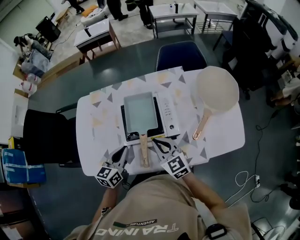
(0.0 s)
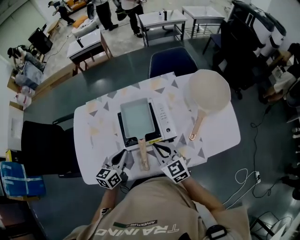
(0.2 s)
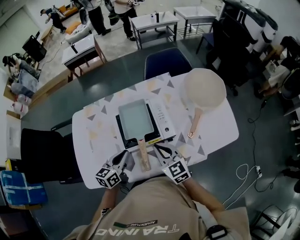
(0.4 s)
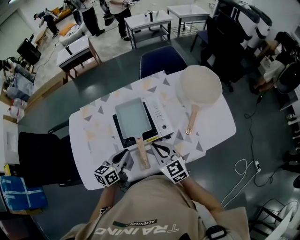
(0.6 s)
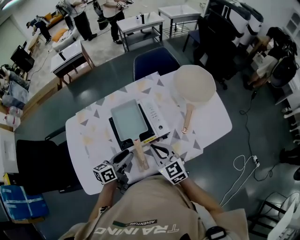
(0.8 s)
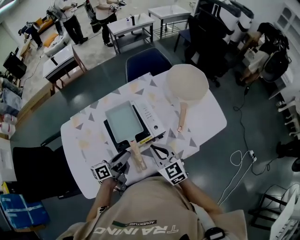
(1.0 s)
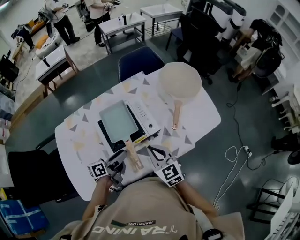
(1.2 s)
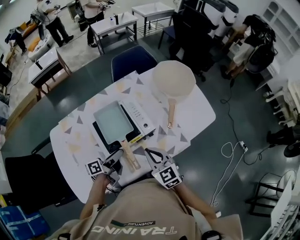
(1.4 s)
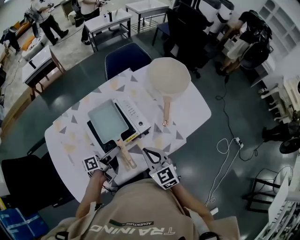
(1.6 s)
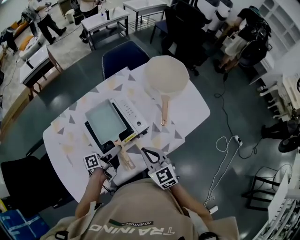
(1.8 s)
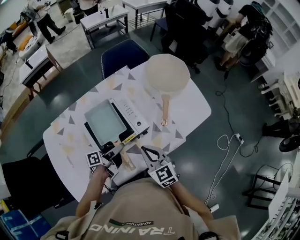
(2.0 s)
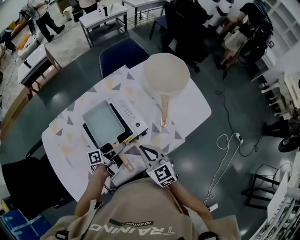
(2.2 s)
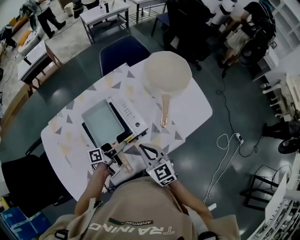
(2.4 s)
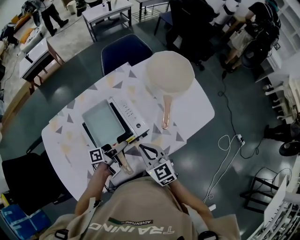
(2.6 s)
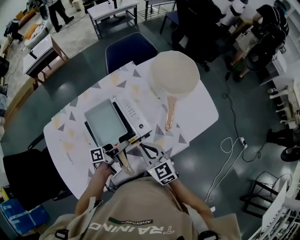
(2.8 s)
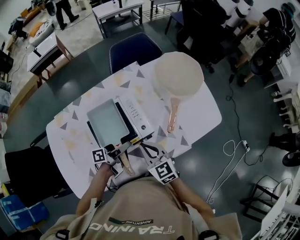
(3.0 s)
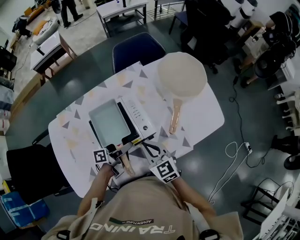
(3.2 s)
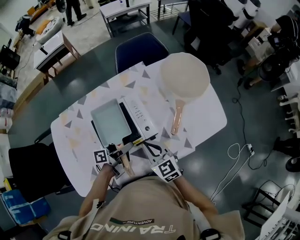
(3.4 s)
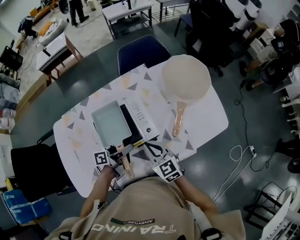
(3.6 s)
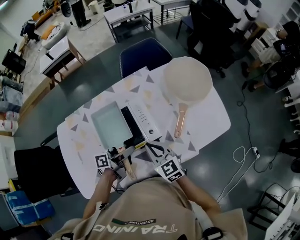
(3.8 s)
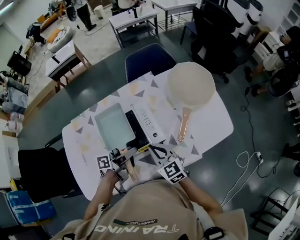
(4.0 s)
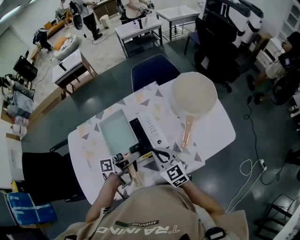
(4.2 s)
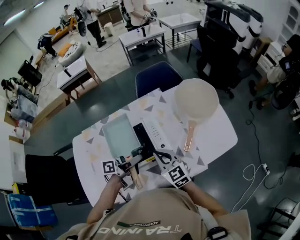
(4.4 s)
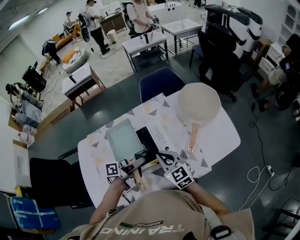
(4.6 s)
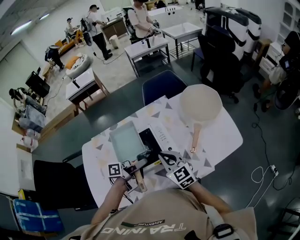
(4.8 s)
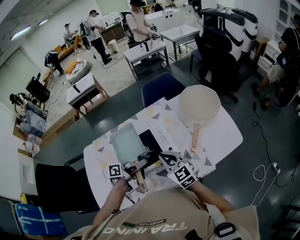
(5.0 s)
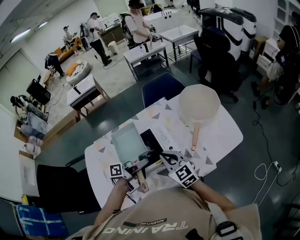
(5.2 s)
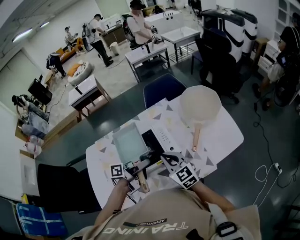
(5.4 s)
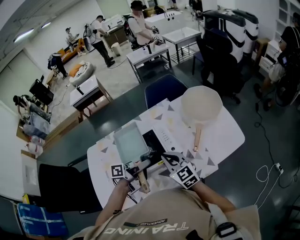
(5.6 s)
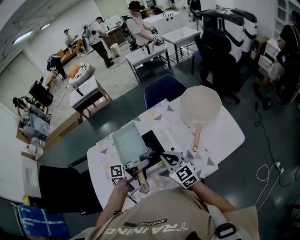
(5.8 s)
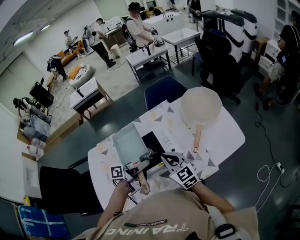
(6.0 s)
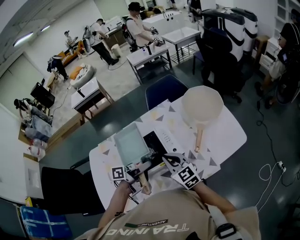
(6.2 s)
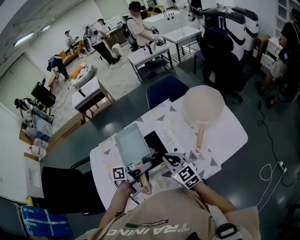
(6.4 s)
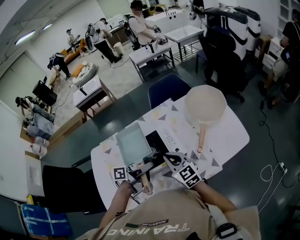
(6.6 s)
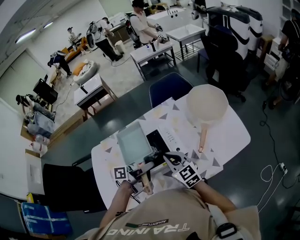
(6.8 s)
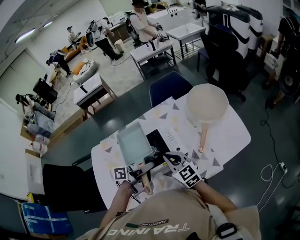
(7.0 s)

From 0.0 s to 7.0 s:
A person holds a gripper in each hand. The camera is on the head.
From 0.0 s to 1.4 s: The left gripper shifts by about 5 cm, swivels about 60 degrees, and opens, while the right gripper moves approximately 5 cm, and turns by some 30 degrees.
From 1.4 s to 2.8 s: The right gripper goes approximately 5 cm forward. The left gripper heads forward and to the right, covering approximately 10 cm, and closes up.
From 2.8 s to 4.2 s: The left gripper goes about 5 cm upward.
From 4.2 s to 5.6 s: The right gripper changes place by some 5 cm. The left gripper shifts by roughly 5 cm.
From 5.6 s to 7.0 s: The grippers stay close to where they were, moving slightly.

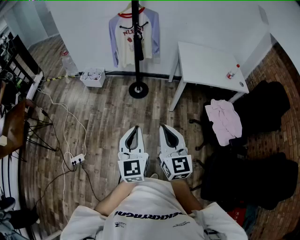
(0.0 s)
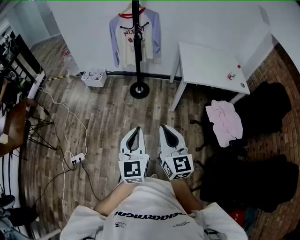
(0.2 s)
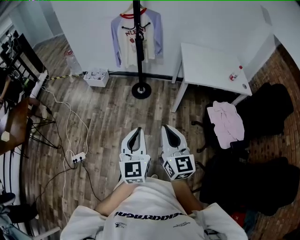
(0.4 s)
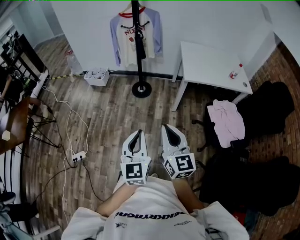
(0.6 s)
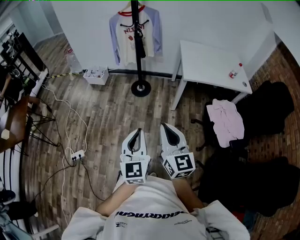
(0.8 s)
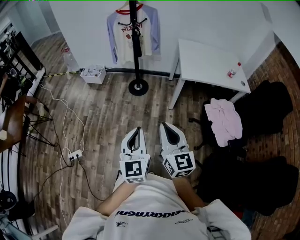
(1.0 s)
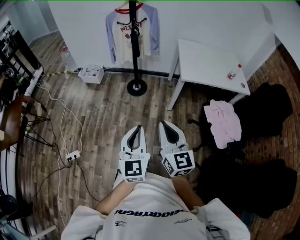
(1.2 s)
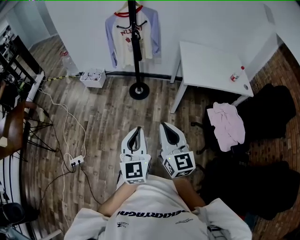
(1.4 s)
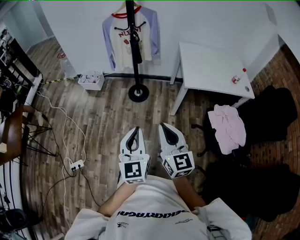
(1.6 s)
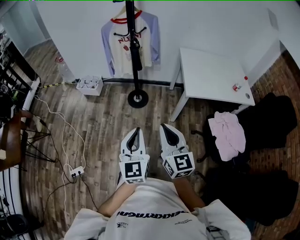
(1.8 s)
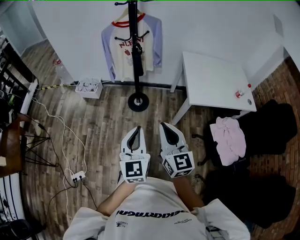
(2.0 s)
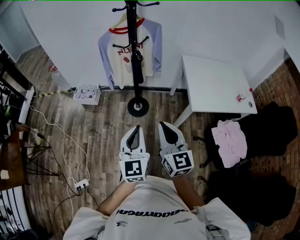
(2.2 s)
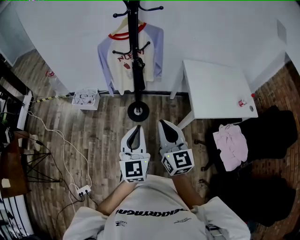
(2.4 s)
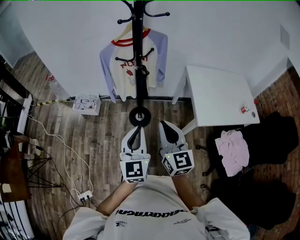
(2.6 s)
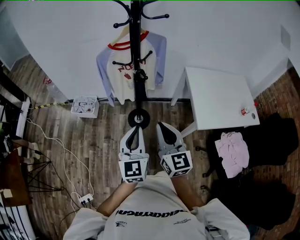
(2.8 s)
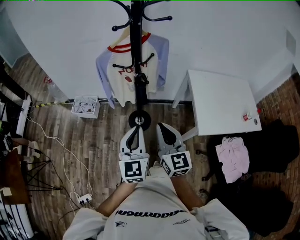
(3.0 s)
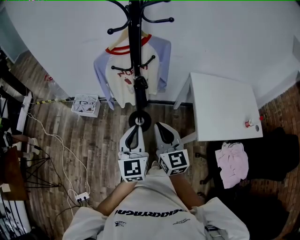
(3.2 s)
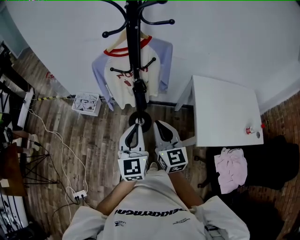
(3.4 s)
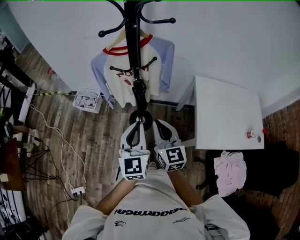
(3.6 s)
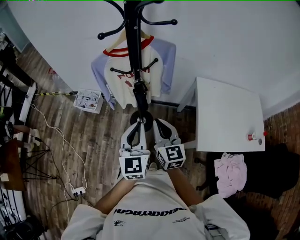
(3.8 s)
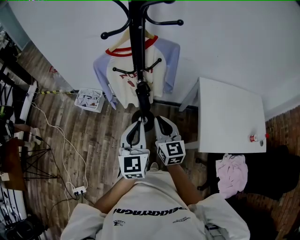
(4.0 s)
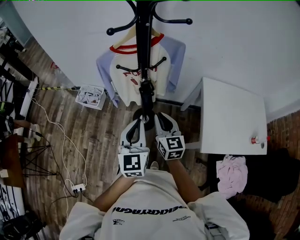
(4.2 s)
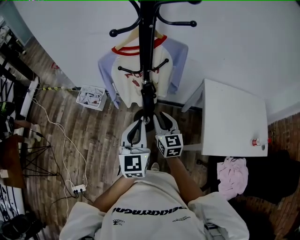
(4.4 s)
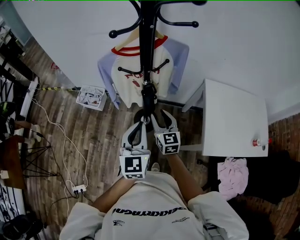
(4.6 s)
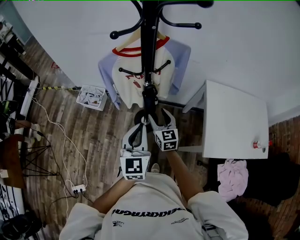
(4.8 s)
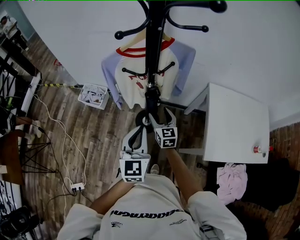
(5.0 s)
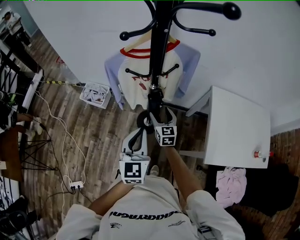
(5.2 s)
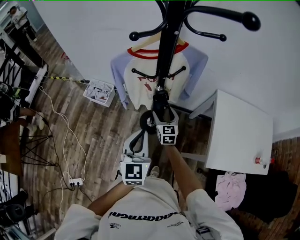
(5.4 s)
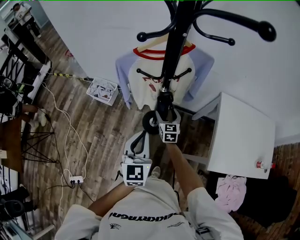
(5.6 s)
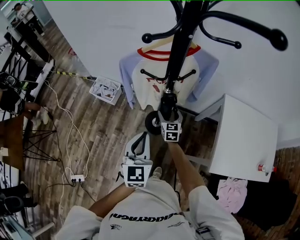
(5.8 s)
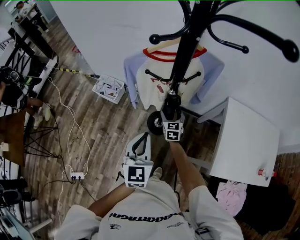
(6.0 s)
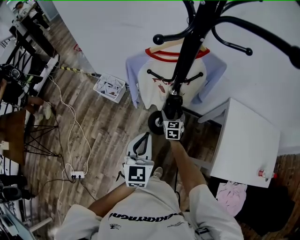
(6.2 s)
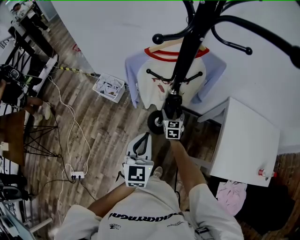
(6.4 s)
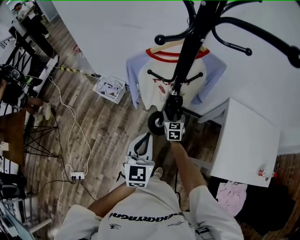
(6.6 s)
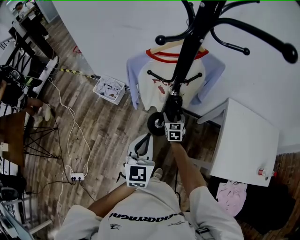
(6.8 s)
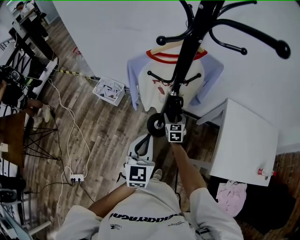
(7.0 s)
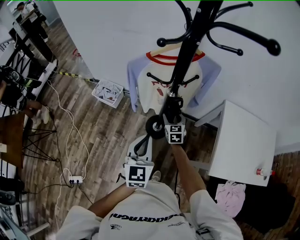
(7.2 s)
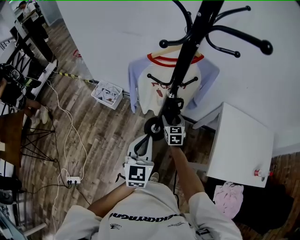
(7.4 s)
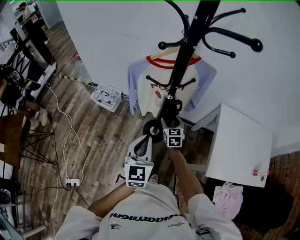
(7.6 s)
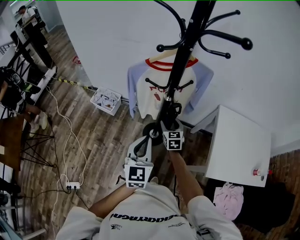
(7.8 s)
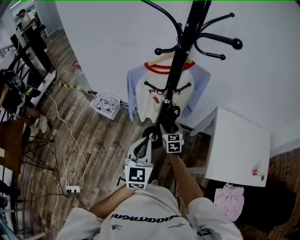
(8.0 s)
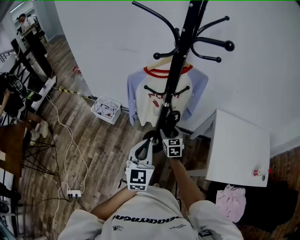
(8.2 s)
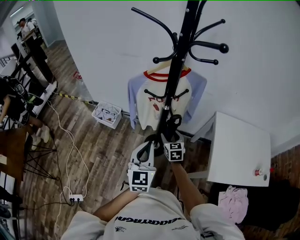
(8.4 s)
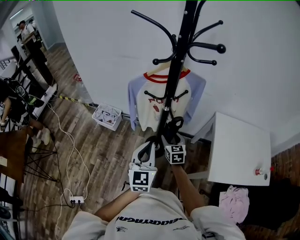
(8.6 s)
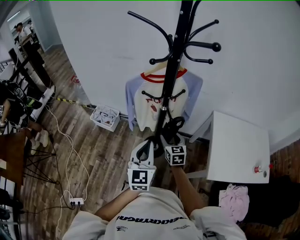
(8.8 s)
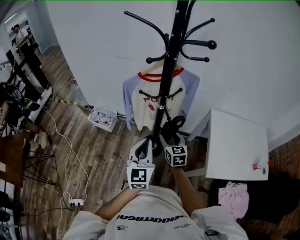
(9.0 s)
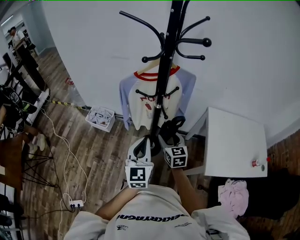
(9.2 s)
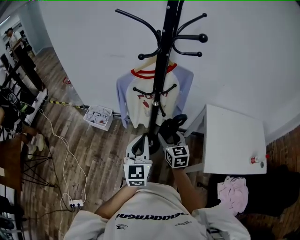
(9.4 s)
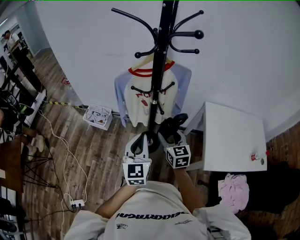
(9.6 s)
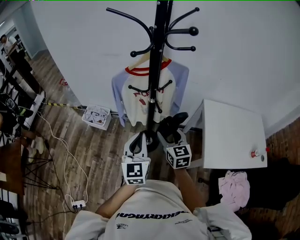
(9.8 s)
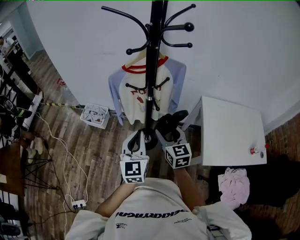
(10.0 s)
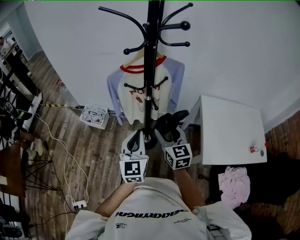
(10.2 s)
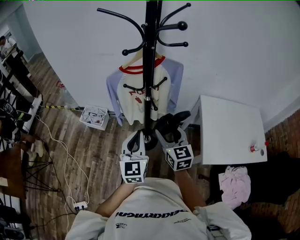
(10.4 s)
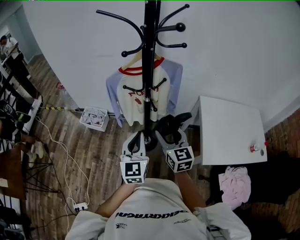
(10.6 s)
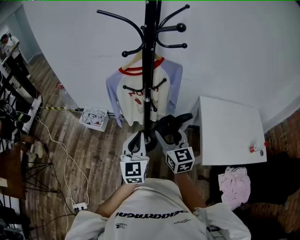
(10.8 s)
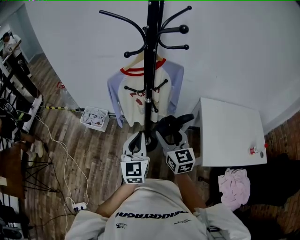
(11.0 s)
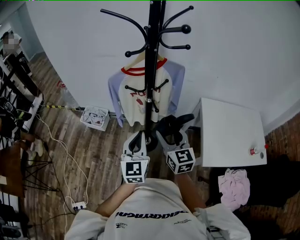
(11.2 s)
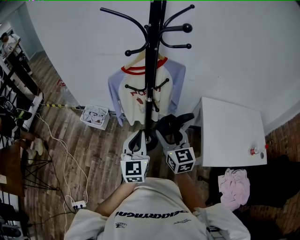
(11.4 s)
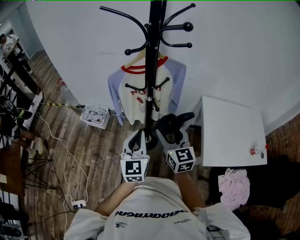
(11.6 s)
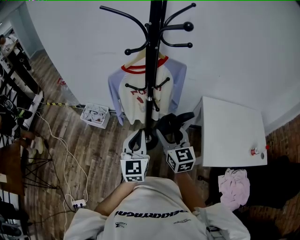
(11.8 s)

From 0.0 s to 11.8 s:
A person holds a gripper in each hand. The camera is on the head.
From 0.0 s to 1.4 s: Both grippers travel together forward and to the right, some 10 cm.
From 1.4 s to 3.0 s: Both grippers are carried forward, approximately 50 cm.
From 3.0 s to 4.4 s: The left gripper moves forward, some 15 cm, while the right gripper goes approximately 25 cm forward and downward.
From 4.4 s to 6.0 s: The left gripper moves to the left and downward, approximately 5 cm. The right gripper goes some 25 cm downward and forward, and opens.
From 6.0 s to 7.4 s: The right gripper goes some 5 cm upward.
From 7.4 s to 8.8 s: The left gripper moves upward, about 5 cm. The right gripper travels backward and upward by some 15 cm.
From 8.8 s to 10.4 s: The right gripper heads upward and backward, covering approximately 15 cm.
From 10.4 s to 11.8 s: The grippers move only a little.

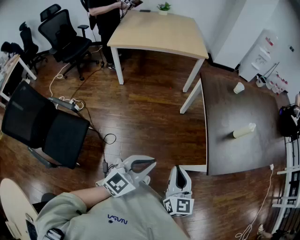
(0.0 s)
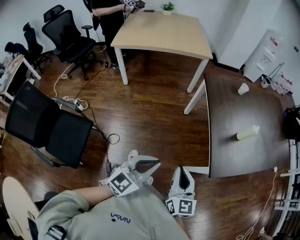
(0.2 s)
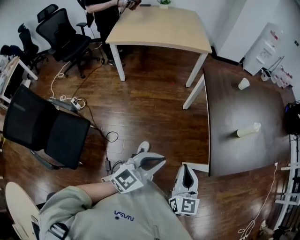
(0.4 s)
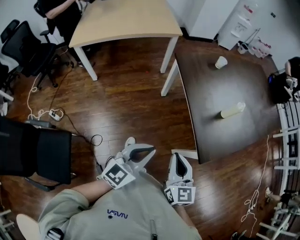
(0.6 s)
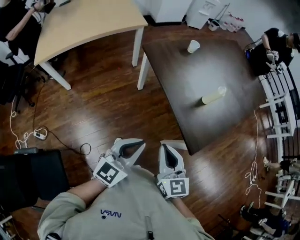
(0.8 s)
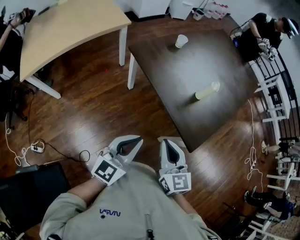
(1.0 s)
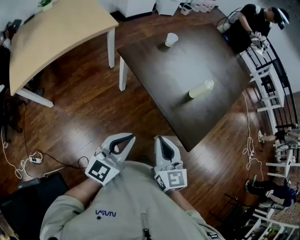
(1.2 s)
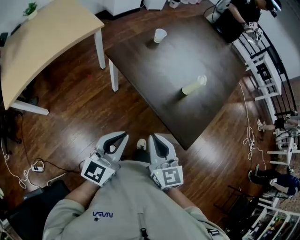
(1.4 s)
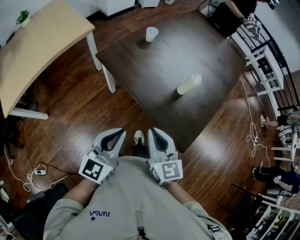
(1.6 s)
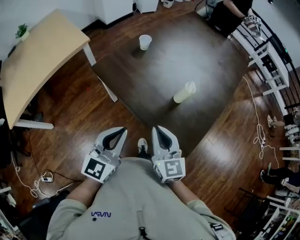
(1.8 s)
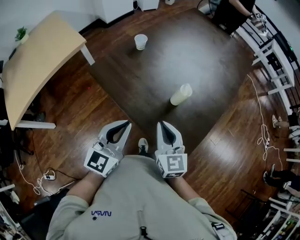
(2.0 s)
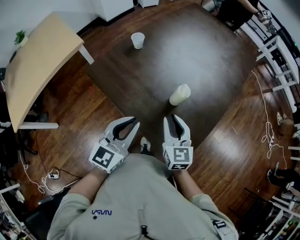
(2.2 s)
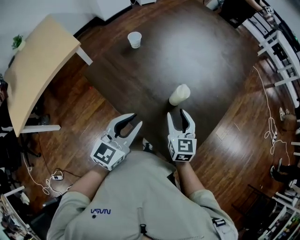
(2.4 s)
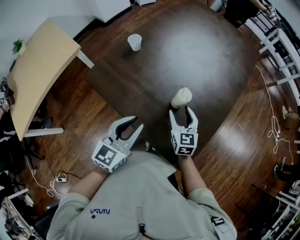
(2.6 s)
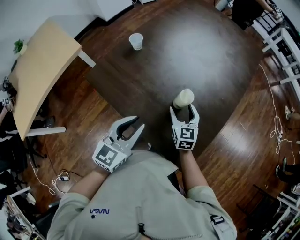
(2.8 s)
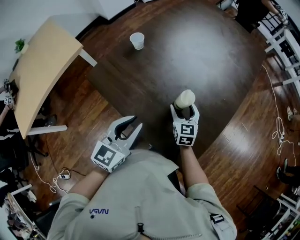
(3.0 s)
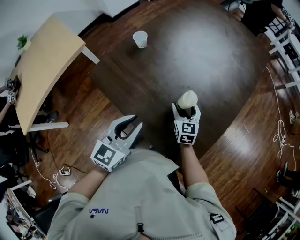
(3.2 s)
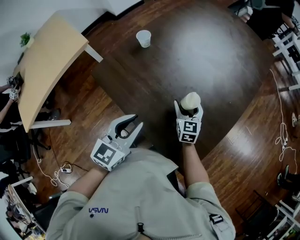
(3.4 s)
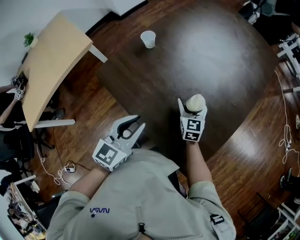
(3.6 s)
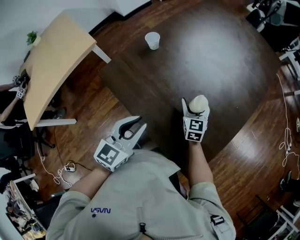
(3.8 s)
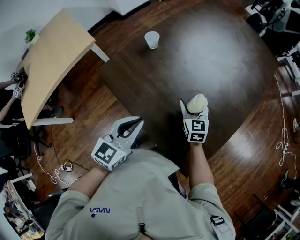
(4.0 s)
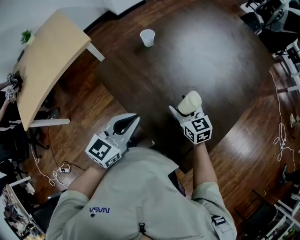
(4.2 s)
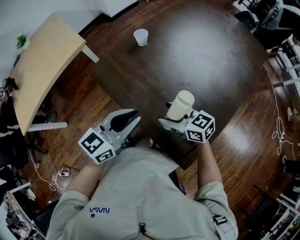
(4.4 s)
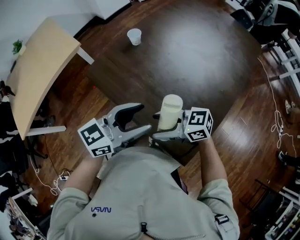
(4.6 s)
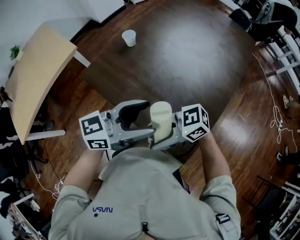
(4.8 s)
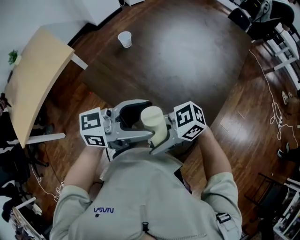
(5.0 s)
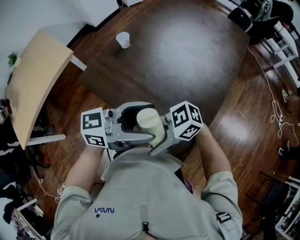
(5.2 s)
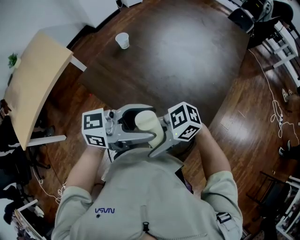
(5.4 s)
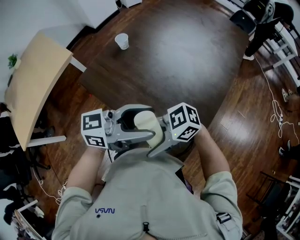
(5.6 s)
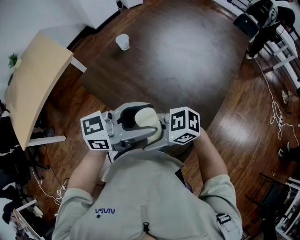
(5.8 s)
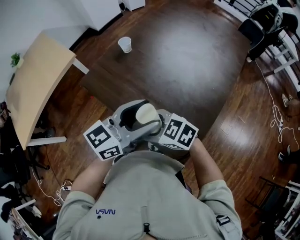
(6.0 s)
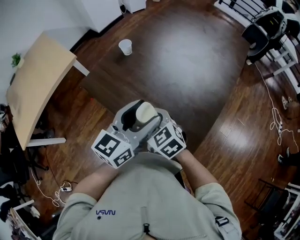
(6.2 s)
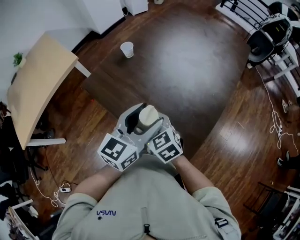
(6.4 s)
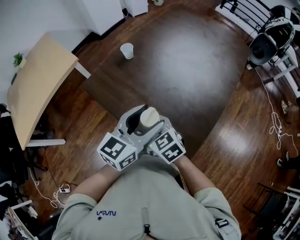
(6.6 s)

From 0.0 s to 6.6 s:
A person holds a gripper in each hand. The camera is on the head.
From 0.0 s to 1.6 s: The right gripper moves about 20 cm, and changes its angle by some 30 degrees; the left gripper ends up approximately 25 cm from where it was, and swivels about 30 degrees.
From 1.6 s to 3.2 s: The right gripper shifts some 35 cm forward, downward and to the right, and opens. Meanwhile the left gripper goes about 15 cm forward and to the right.
From 3.2 s to 5.0 s: The right gripper ends up roughly 30 cm from where it was, and rotates about 100 degrees. The left gripper is displaced upward by some 10 cm, rotates some 50 degrees, and opens up.
From 5.0 s to 6.6 s: The right gripper shifts by approximately 15 cm, and swivels some 60 degrees, while the left gripper moves about 5 cm, and turns by some 40 degrees.
